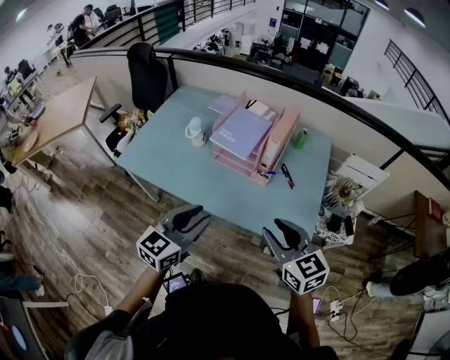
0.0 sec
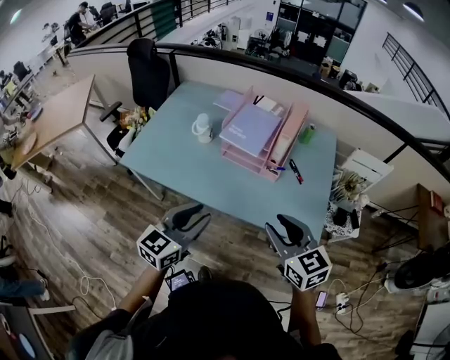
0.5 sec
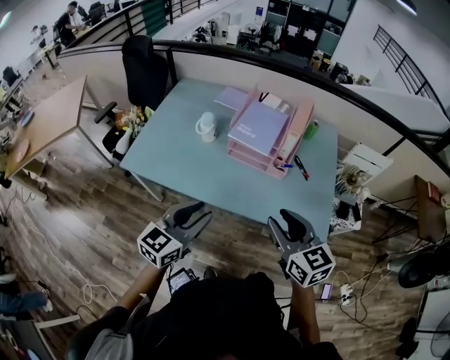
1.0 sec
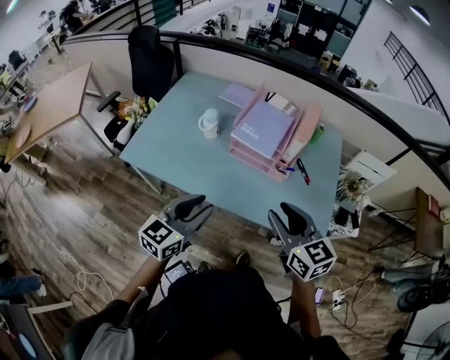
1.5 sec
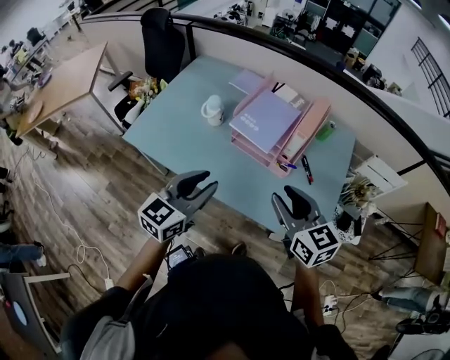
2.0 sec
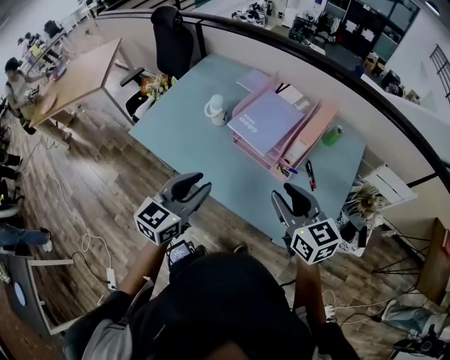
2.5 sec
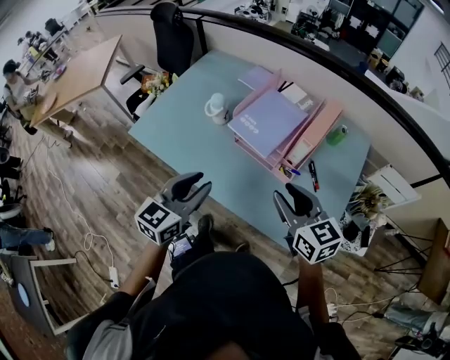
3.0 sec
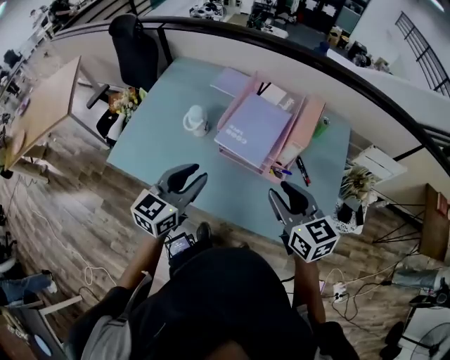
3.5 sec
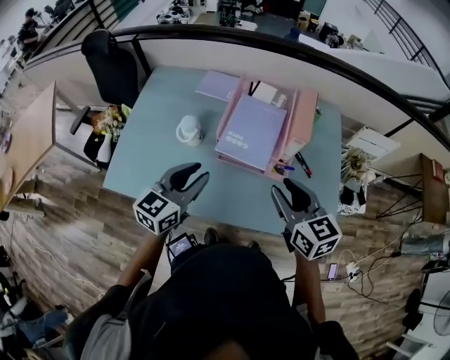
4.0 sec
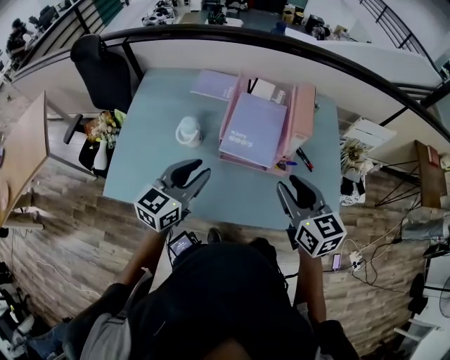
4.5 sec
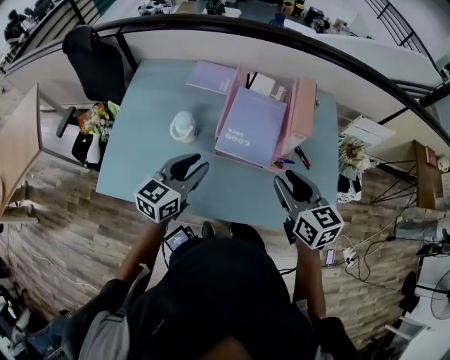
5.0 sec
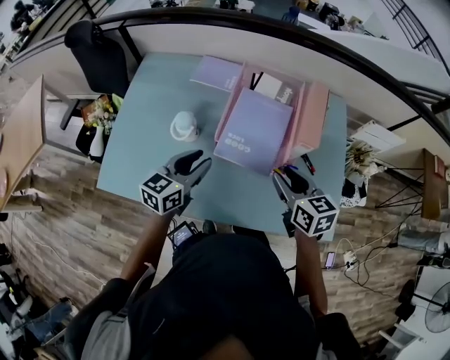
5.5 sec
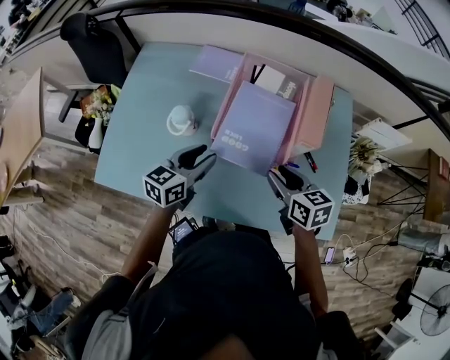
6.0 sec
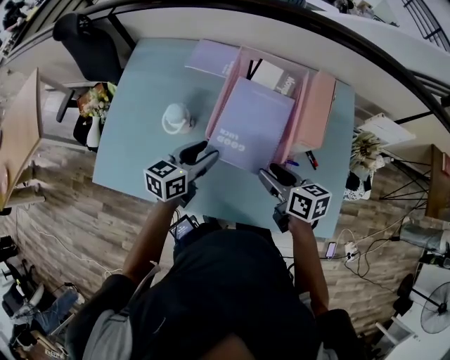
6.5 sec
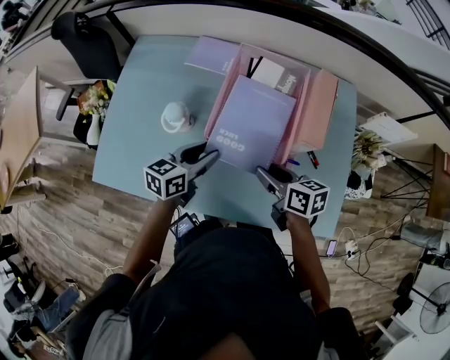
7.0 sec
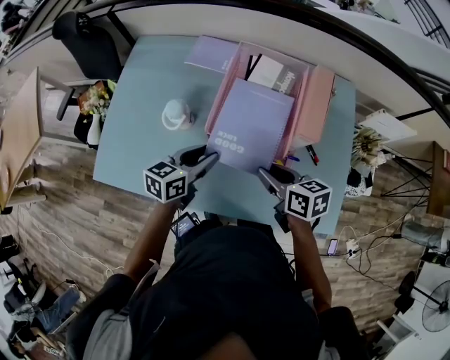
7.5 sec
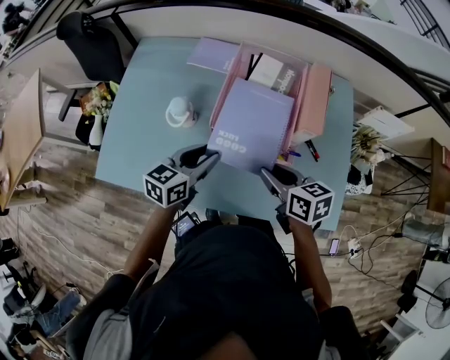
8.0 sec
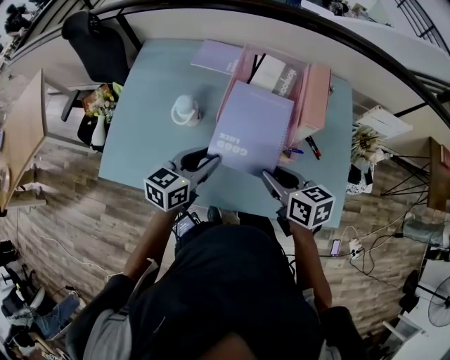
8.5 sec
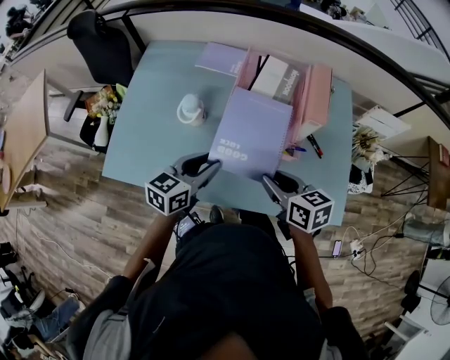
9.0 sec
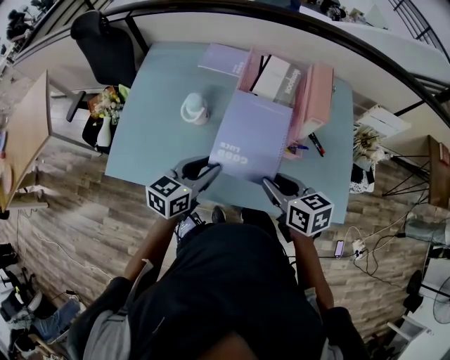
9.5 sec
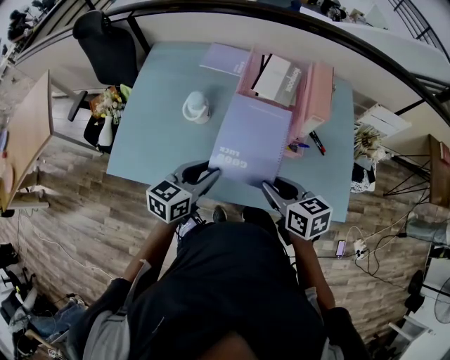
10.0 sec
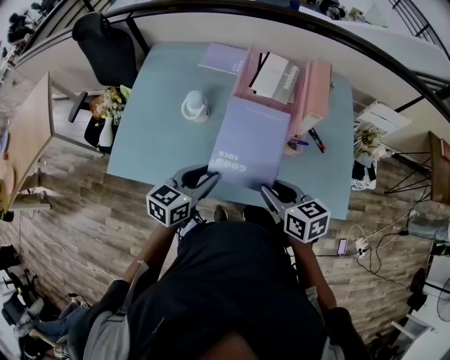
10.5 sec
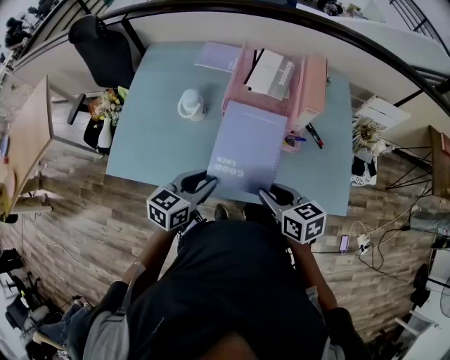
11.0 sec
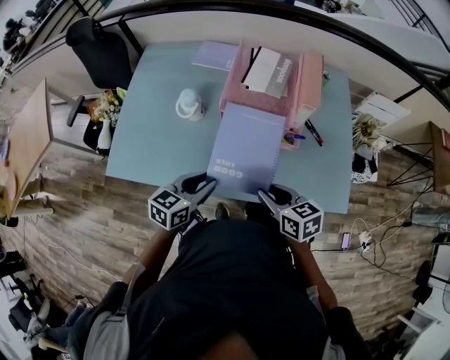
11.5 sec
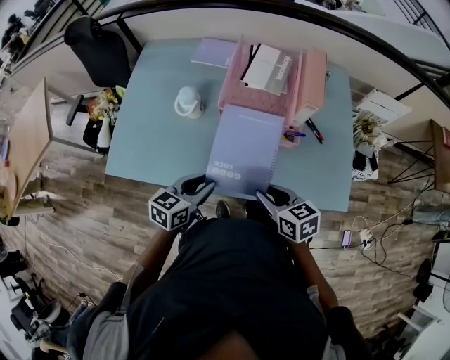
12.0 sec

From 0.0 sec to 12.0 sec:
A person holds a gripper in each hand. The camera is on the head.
From 0.0 sec to 2.0 sec: Both grippers travel together forward and to the left, approximately 10 cm.
From 2.0 sec to 4.0 sec: The left gripper moves forward, some 15 cm. Meanwhile the right gripper travels forward by roughly 10 cm.
From 4.0 sec to 6.0 sec: The two grippers go roughly 15 cm downward and forward. The right gripper rotates approximately 20 degrees.
From 6.0 sec to 8.0 sec: The grippers move only a little.
From 8.0 sec to 10.0 sec: The grippers both shift backward by approximately 10 cm.
From 10.0 sec to 12.0 sec: The left gripper shifts some 10 cm downward and backward. The right gripper shifts approximately 5 cm downward.

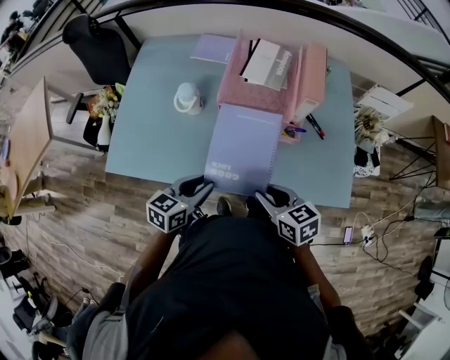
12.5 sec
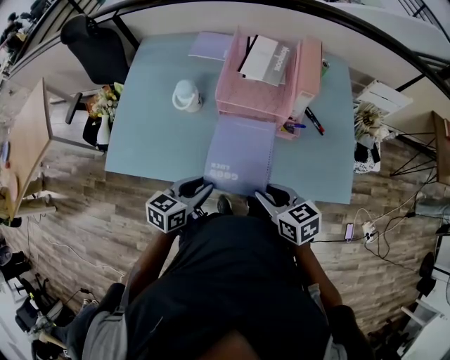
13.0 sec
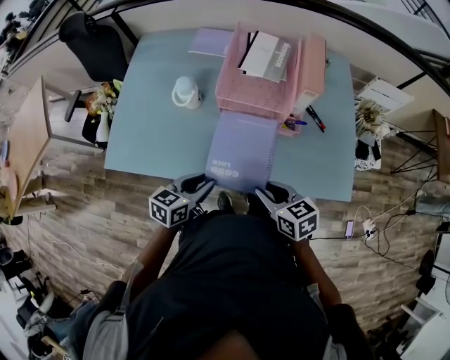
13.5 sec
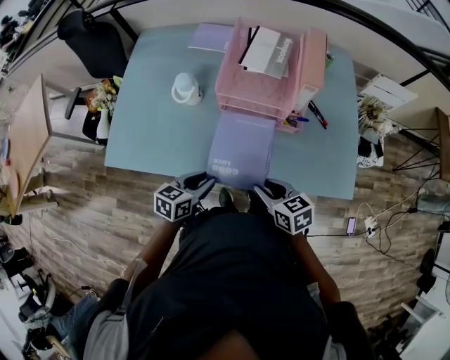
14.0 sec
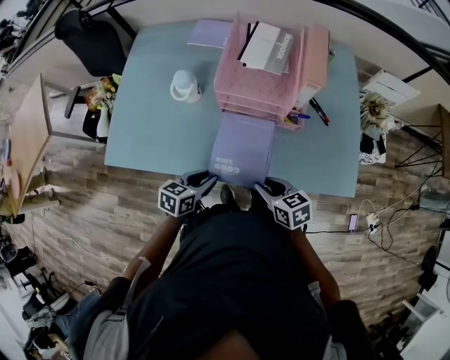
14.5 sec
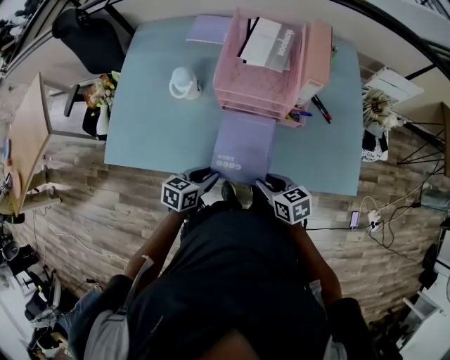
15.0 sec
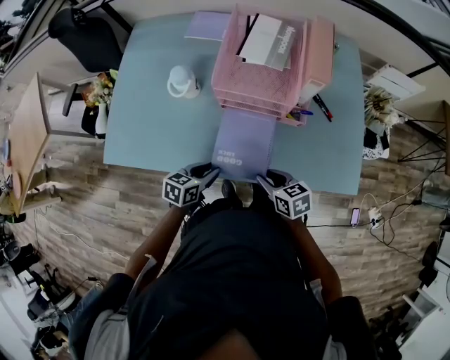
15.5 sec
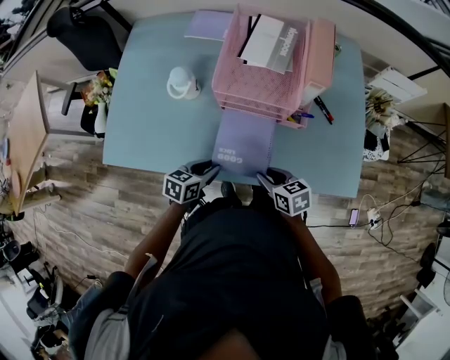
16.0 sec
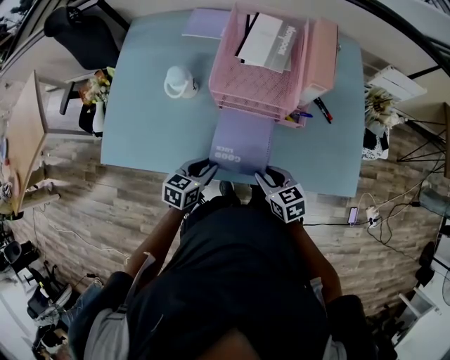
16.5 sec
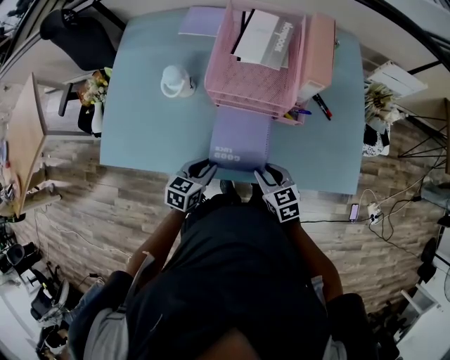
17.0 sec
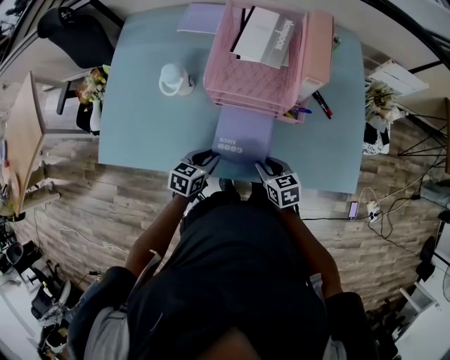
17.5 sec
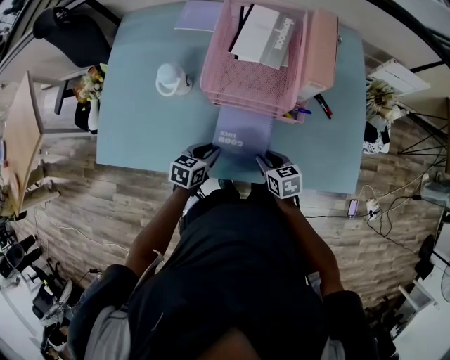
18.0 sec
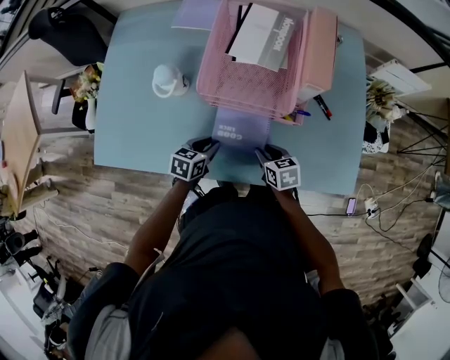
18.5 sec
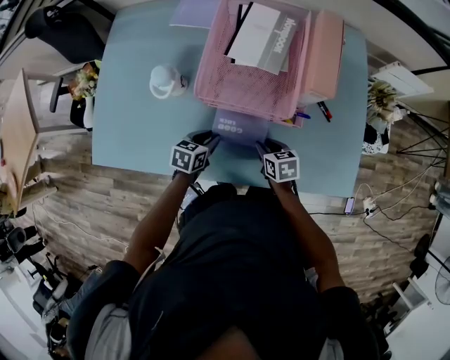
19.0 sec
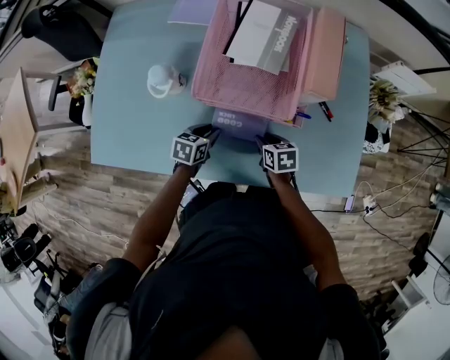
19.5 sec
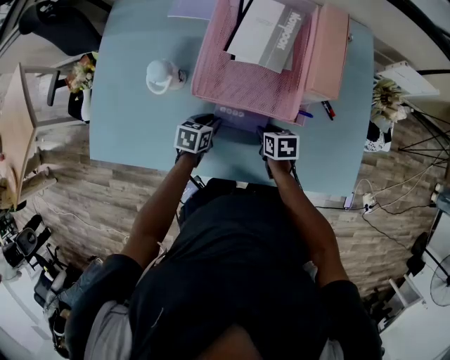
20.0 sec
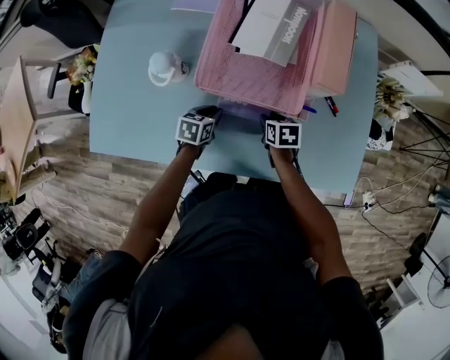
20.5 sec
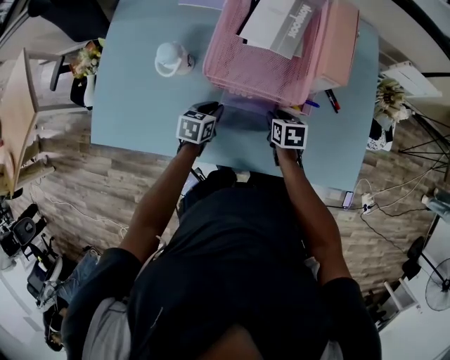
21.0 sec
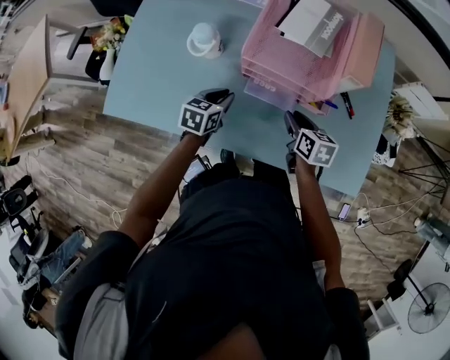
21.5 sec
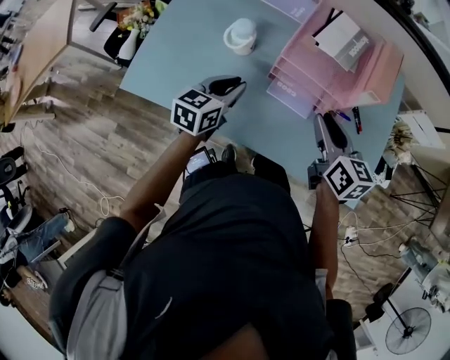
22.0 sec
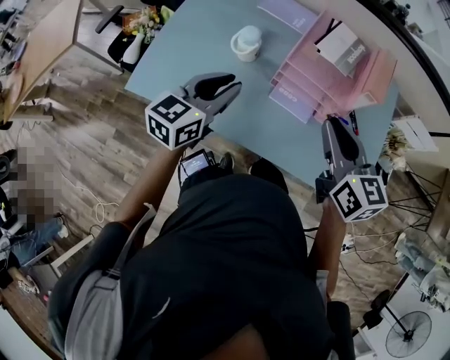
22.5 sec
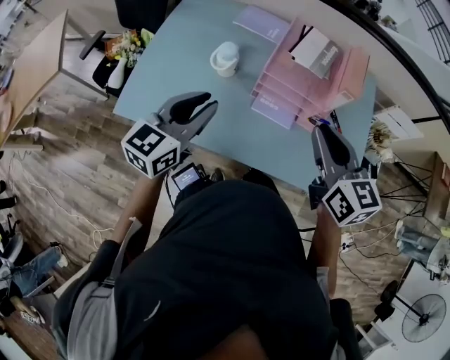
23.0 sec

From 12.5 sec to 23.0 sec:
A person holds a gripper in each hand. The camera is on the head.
From 12.5 sec to 14.5 sec: The two grippers go approximately 10 cm downward.
From 14.5 sec to 16.5 sec: The left gripper ends up some 5 cm from where it was; the right gripper shifts by approximately 5 cm.
From 16.5 sec to 19.0 sec: Both grippers travel together forward and downward, roughly 15 cm.
From 19.0 sec to 21.0 sec: The right gripper goes some 5 cm forward.
From 21.0 sec to 23.0 sec: Both grippers move upward, some 40 cm. The right gripper points its fingers about 40 degrees further upward. Meanwhile the left gripper tips its fingers upward by approximately 40 degrees.

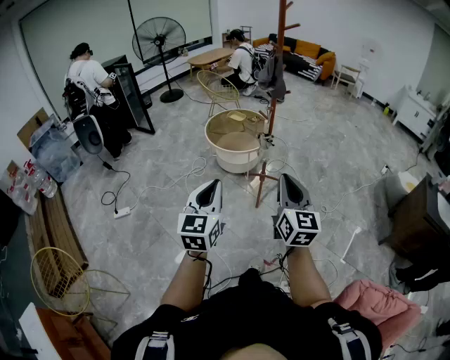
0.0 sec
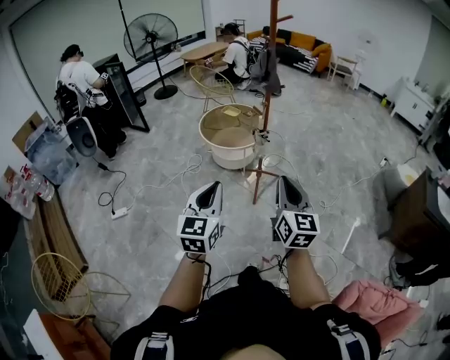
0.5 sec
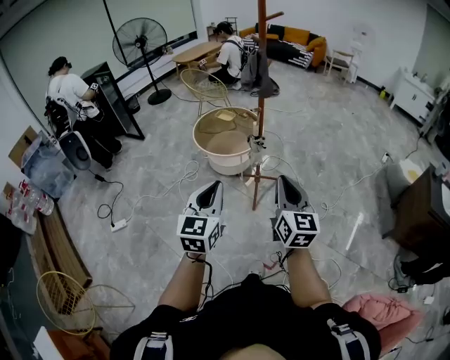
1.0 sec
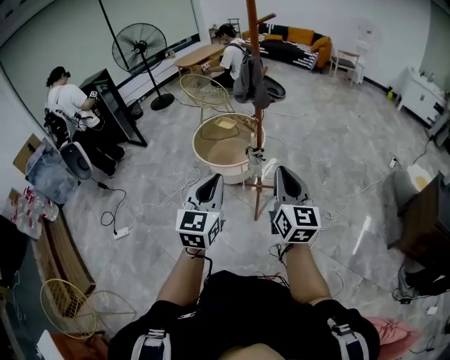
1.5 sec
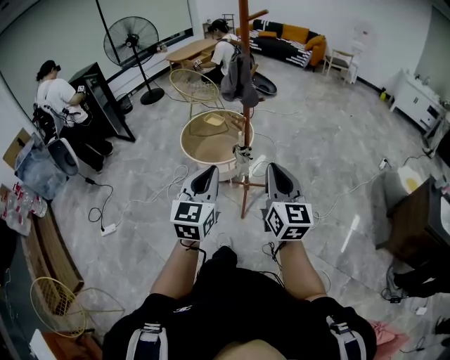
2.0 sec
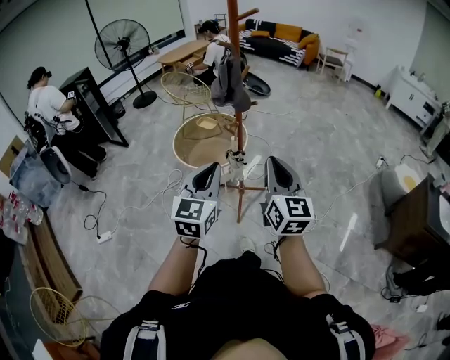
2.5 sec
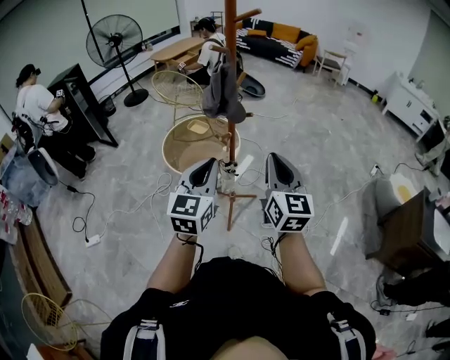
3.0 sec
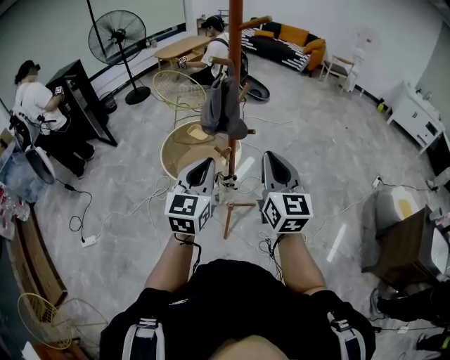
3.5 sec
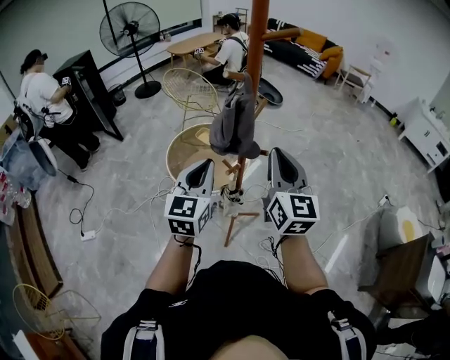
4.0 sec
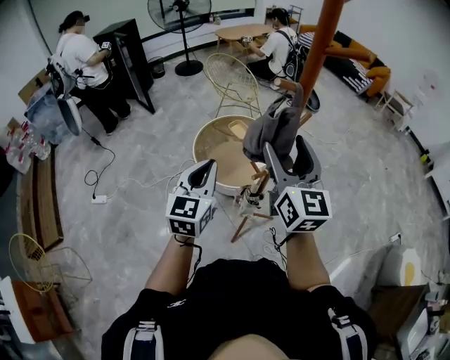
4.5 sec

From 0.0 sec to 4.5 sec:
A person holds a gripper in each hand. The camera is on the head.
From 0.0 sec to 2.0 sec: Both grippers move forward and to the right, some 40 cm.
From 2.0 sec to 4.5 sec: The pair of grippers is taken forward, roughly 50 cm. The right gripper opens up.
